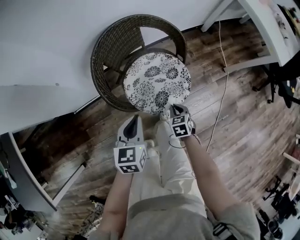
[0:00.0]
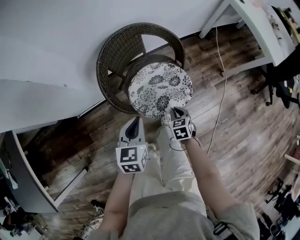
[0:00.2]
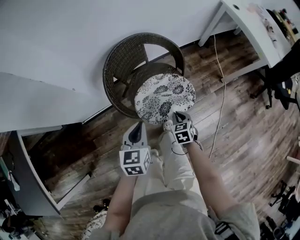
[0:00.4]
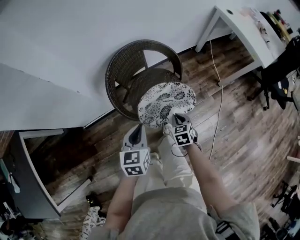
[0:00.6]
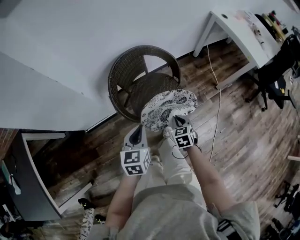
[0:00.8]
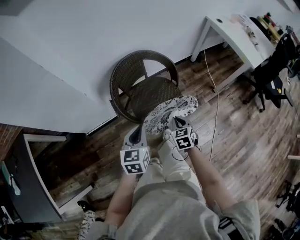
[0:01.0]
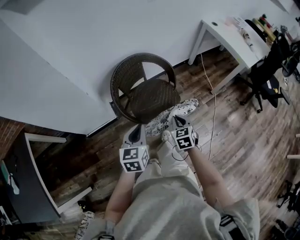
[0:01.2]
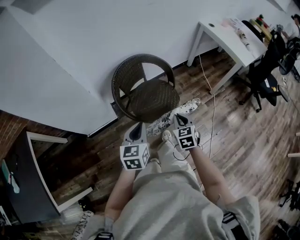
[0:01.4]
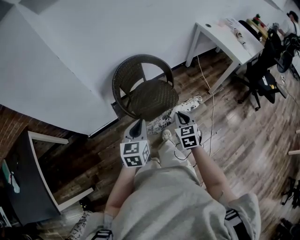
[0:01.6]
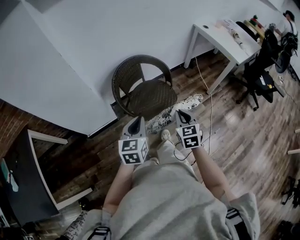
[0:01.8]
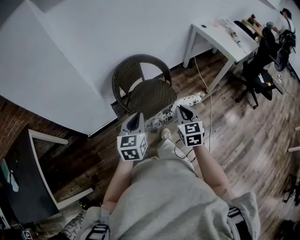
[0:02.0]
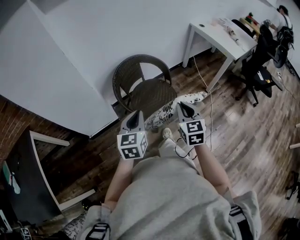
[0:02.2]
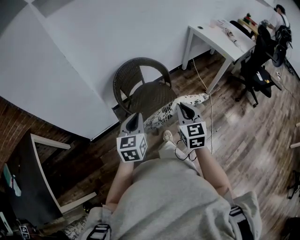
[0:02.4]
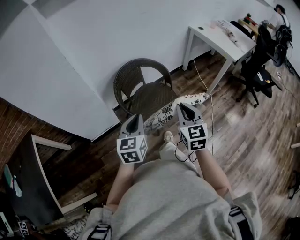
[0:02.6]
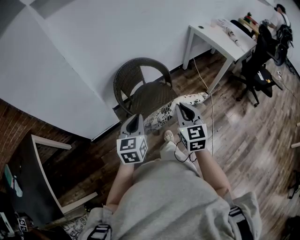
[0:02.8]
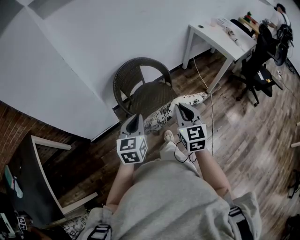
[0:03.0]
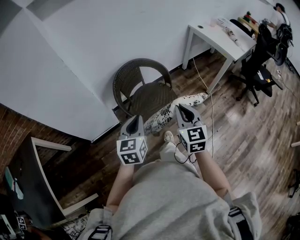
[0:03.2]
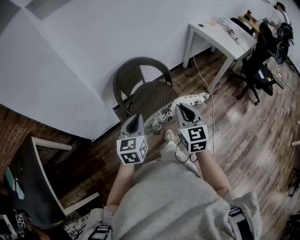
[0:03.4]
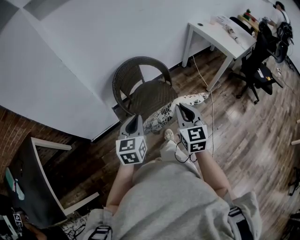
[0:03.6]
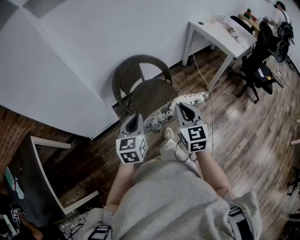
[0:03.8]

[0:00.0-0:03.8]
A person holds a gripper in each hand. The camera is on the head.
0:00.0 to 0:01.2: The left gripper is displaced upward and backward by approximately 20 cm; the right gripper heads upward, covering approximately 25 cm.
0:01.2 to 0:02.6: The left gripper moves upward and backward, roughly 10 cm. Meanwhile the right gripper shifts roughly 25 cm upward and backward, and turns by some 30 degrees.
0:02.6 to 0:03.8: The grippers stay close to where they were, moving slightly.

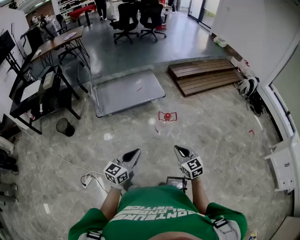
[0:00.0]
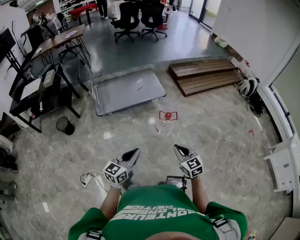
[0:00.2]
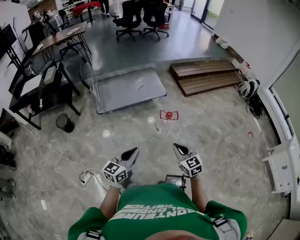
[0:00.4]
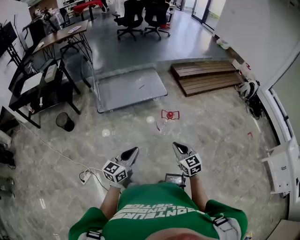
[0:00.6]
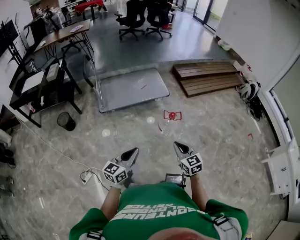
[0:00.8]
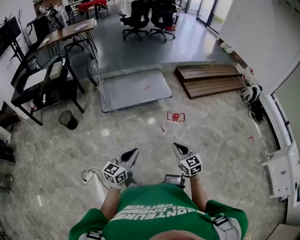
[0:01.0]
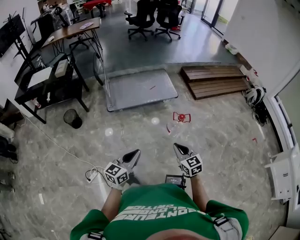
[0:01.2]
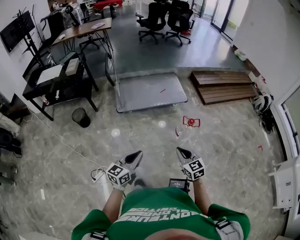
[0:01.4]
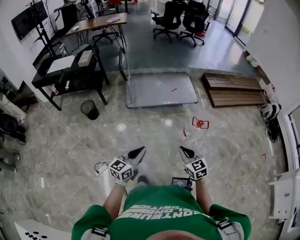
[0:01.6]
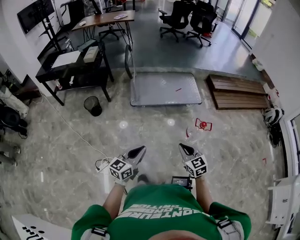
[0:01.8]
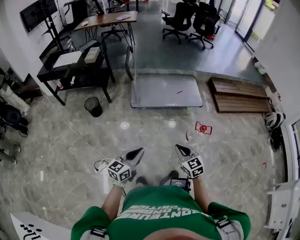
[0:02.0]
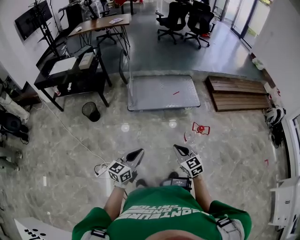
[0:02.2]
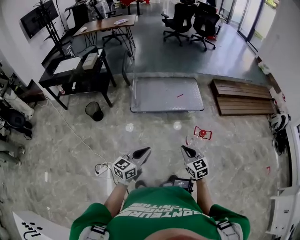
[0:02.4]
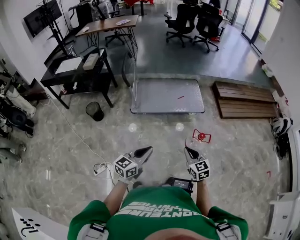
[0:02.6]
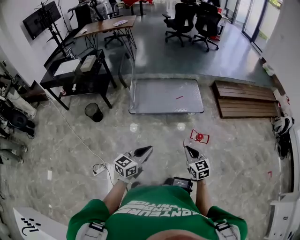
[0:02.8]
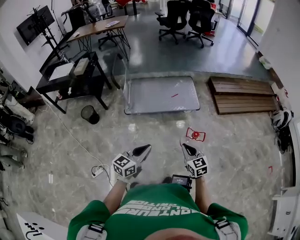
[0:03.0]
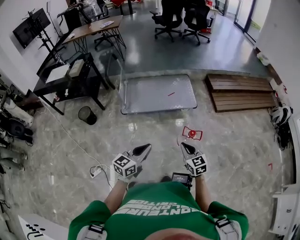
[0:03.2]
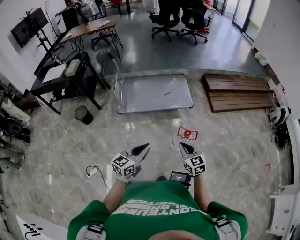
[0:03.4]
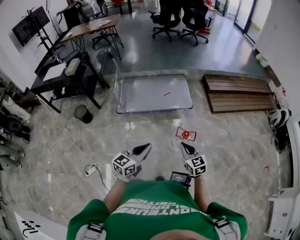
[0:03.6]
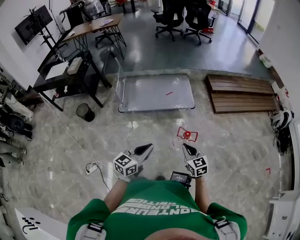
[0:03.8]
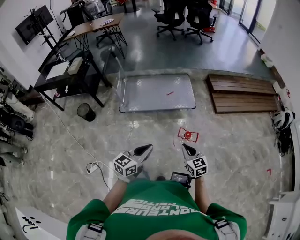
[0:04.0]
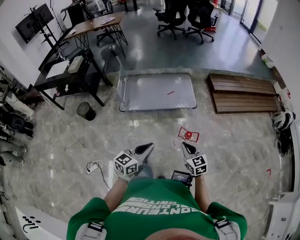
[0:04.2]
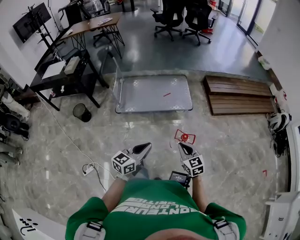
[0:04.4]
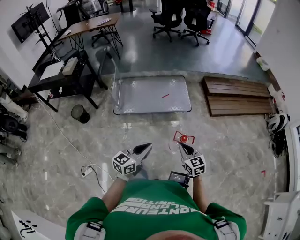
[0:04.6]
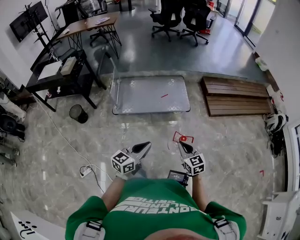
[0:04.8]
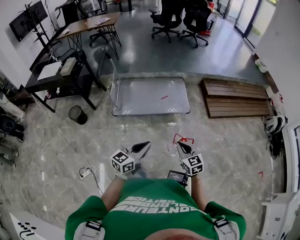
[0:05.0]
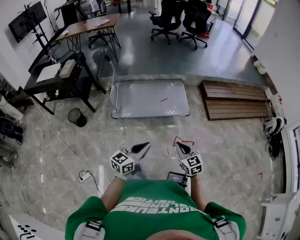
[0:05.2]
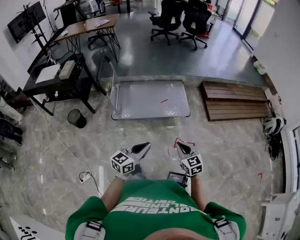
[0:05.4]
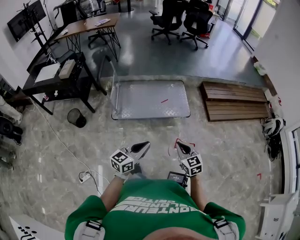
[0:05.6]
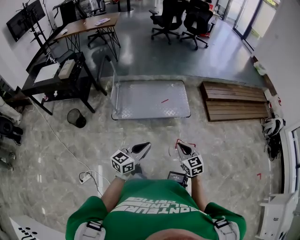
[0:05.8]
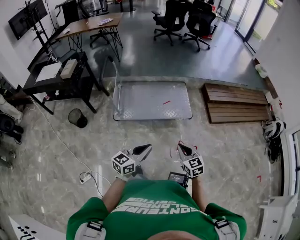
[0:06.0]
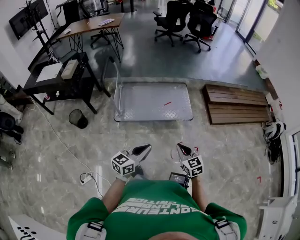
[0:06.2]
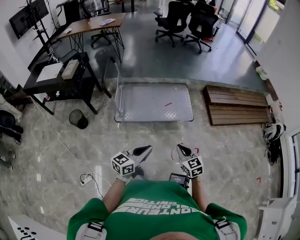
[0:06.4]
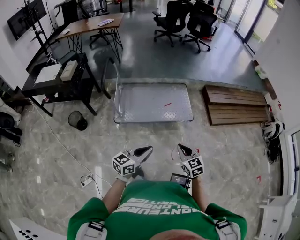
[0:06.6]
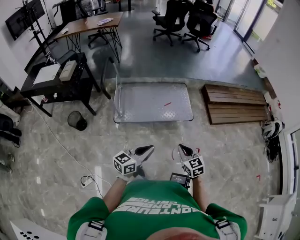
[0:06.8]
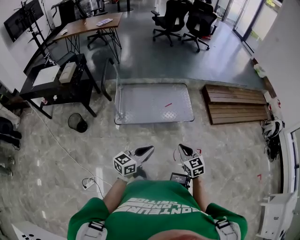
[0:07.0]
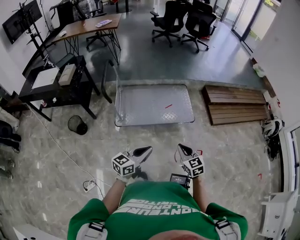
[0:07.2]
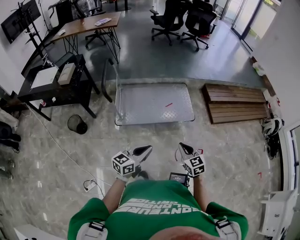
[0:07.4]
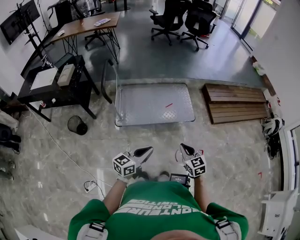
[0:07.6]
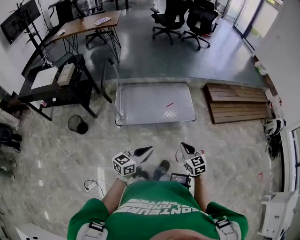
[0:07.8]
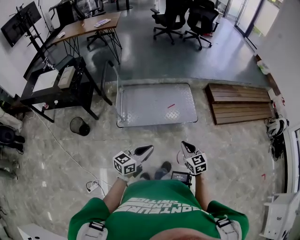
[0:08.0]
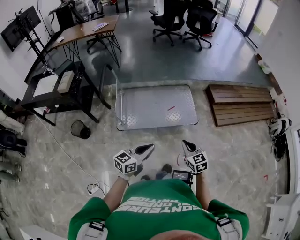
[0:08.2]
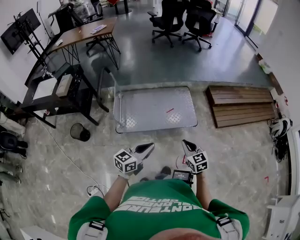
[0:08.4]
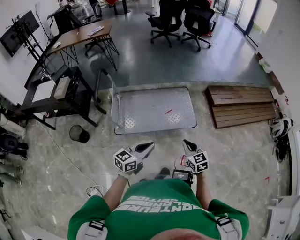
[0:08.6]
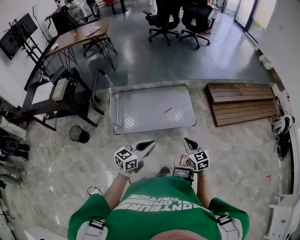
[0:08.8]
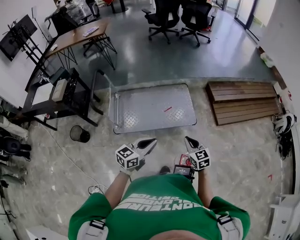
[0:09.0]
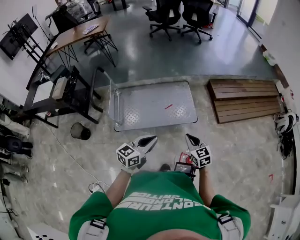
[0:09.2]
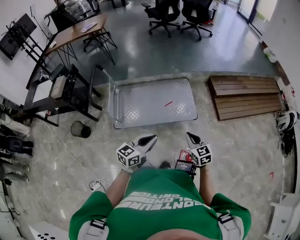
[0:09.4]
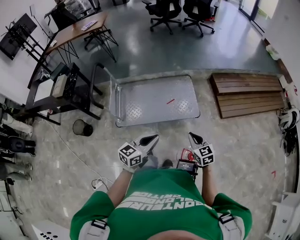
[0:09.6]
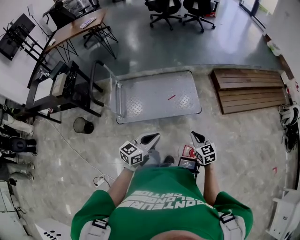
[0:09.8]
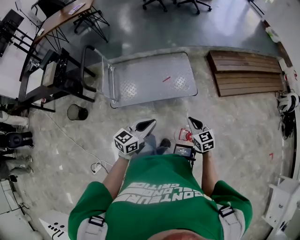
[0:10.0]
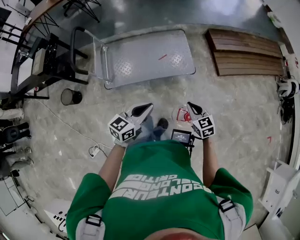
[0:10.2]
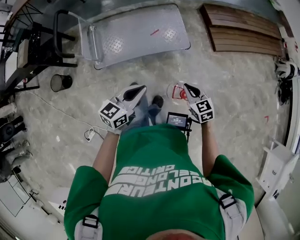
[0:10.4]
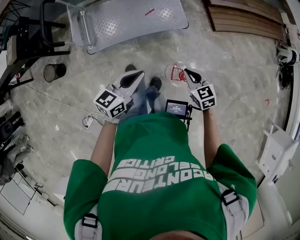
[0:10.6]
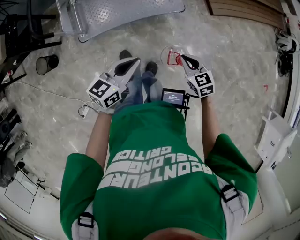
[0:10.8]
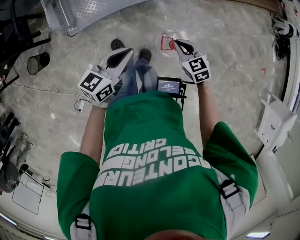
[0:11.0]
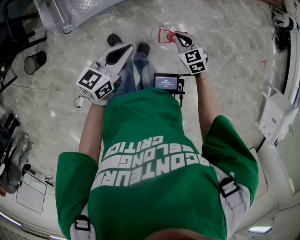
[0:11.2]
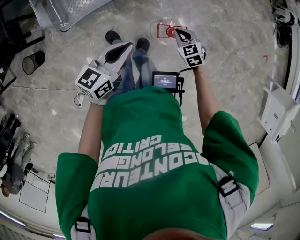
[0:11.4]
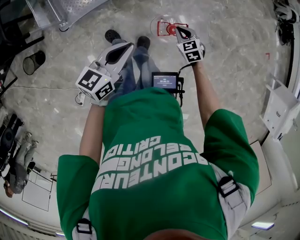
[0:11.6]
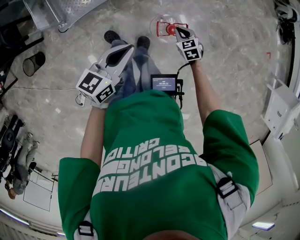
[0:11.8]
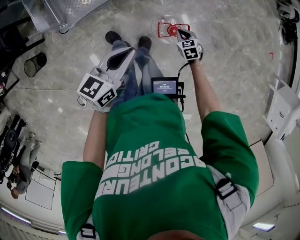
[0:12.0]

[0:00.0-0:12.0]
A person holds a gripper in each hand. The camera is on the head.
0:00.0 to 0:01.6: The grippers both shift to the left by about 20 cm.
0:01.6 to 0:03.0: Both grippers travel together to the right and forward, about 20 cm.
0:03.0 to 0:04.4: Both grippers move to the right and forward, some 10 cm.
0:04.4 to 0:06.0: The two grippers go approximately 10 cm forward and to the left.
0:06.0 to 0:07.6: The right gripper is displaced to the left and forward by some 10 cm; the left gripper moves to the left, some 10 cm.
0:07.6 to 0:09.0: The two grippers go approximately 20 cm forward and to the right.
0:09.0 to 0:10.4: The right gripper shifts some 10 cm downward; the left gripper shifts about 5 cm downward.
0:10.4 to 0:12.0: The right gripper shifts approximately 25 cm downward and to the right, and swivels some 30 degrees. Meanwhile the left gripper travels to the right and downward by some 10 cm.

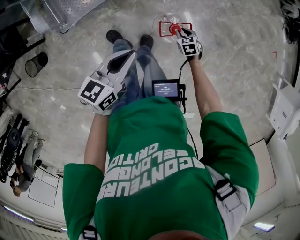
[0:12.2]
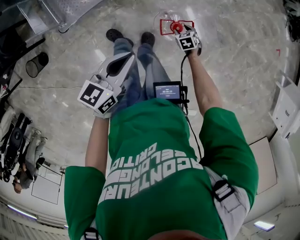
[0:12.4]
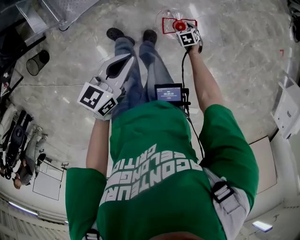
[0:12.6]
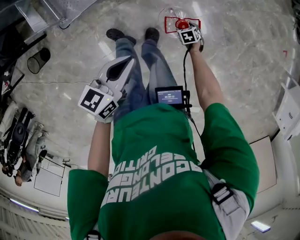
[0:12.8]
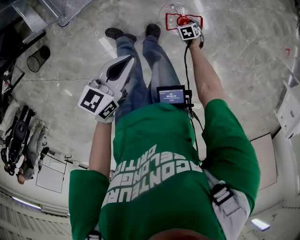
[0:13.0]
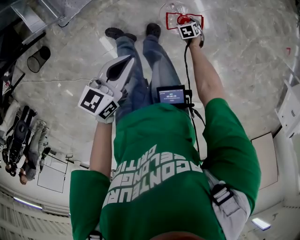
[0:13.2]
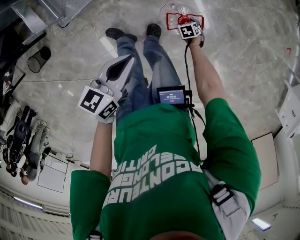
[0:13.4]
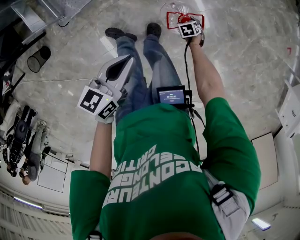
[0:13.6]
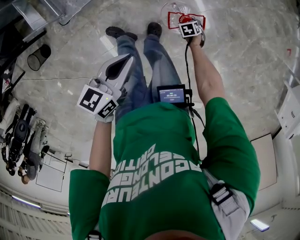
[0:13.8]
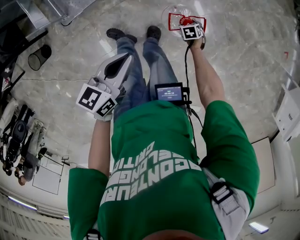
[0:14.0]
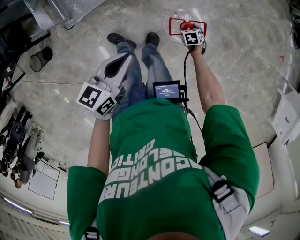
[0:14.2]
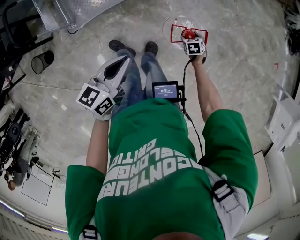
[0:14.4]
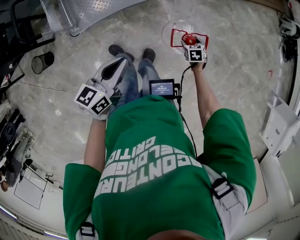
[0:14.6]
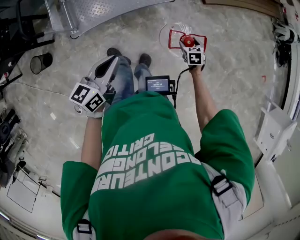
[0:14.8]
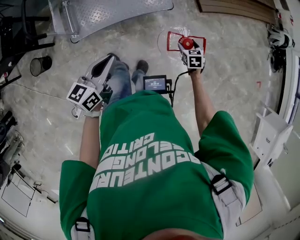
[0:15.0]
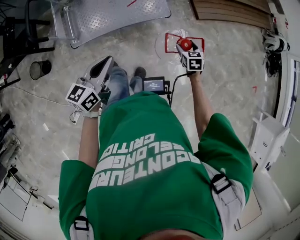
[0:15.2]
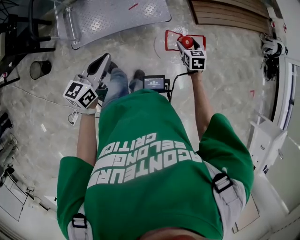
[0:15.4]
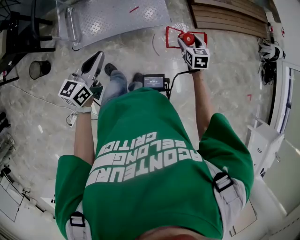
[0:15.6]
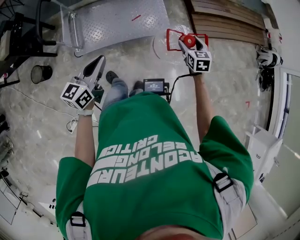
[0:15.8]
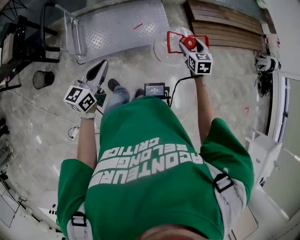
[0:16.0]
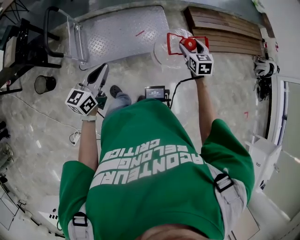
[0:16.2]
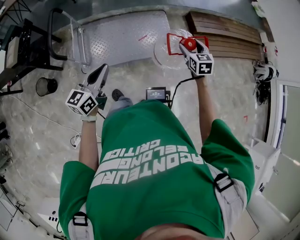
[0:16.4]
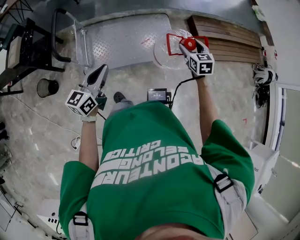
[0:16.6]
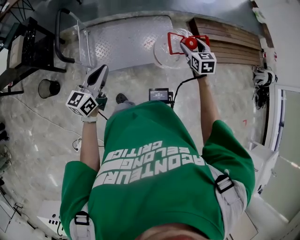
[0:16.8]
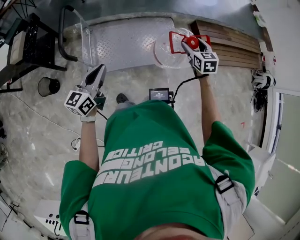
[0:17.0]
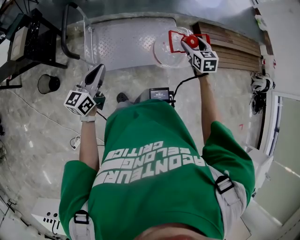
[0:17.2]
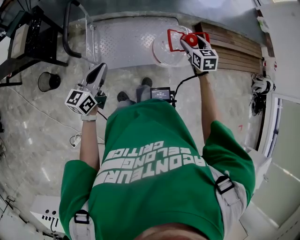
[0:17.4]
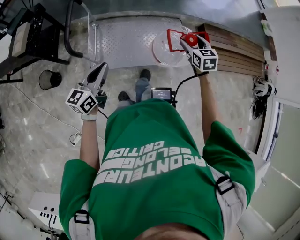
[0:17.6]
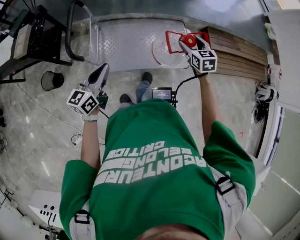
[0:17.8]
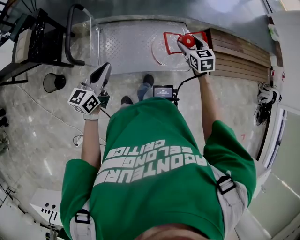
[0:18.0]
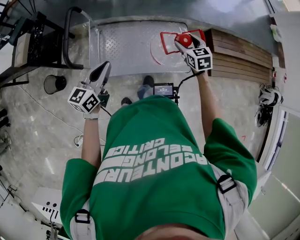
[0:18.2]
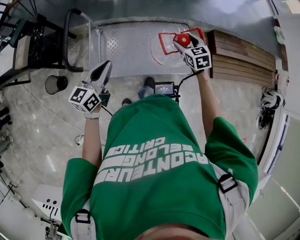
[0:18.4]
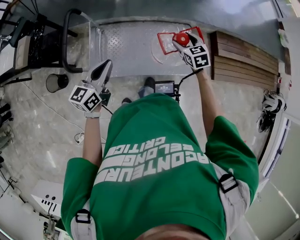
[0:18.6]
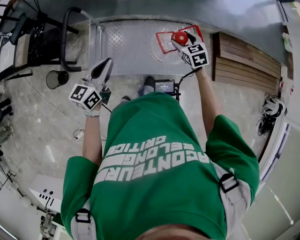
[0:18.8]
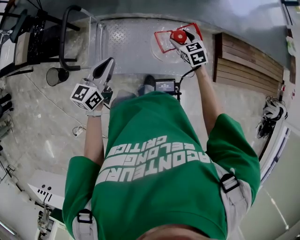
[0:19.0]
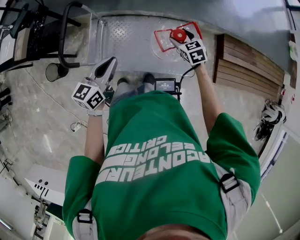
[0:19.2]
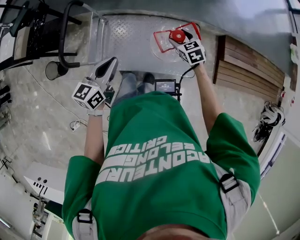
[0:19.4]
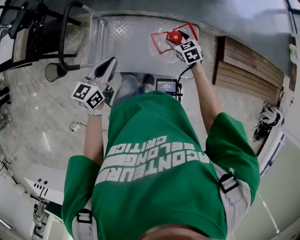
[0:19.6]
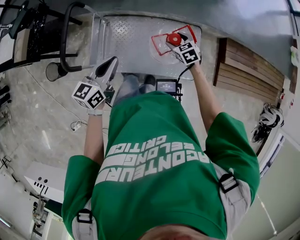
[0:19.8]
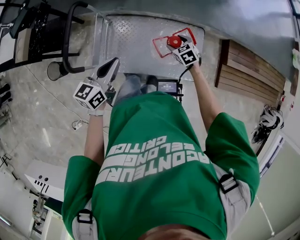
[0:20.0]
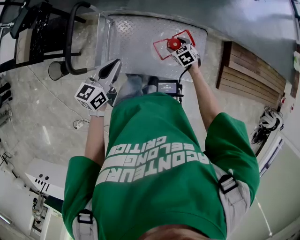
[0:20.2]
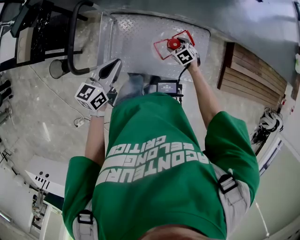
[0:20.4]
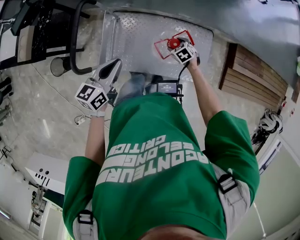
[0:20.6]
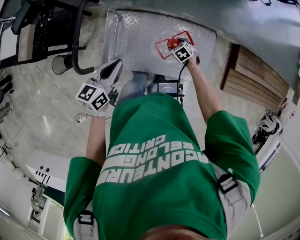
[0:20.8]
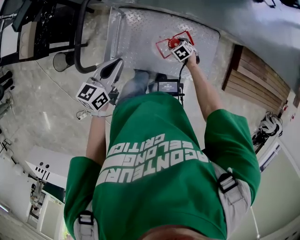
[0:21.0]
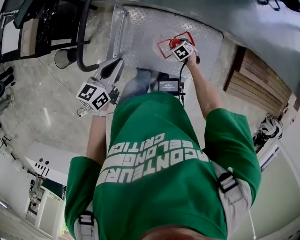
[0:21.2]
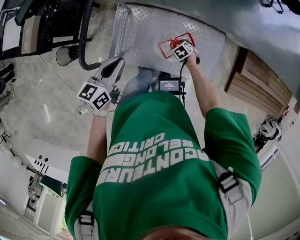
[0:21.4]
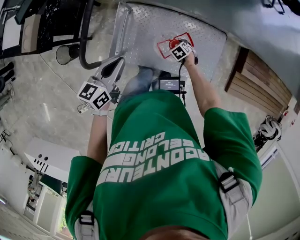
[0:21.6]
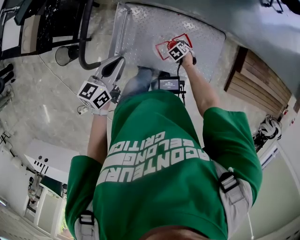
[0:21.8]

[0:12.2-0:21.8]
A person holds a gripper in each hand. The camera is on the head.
0:12.2 to 0:13.8: The right gripper moves downward, roughly 15 cm, and opens up.
0:13.8 to 0:15.4: The left gripper heads upward, covering approximately 15 cm, and turns by roughly 30 degrees, while the right gripper goes about 40 cm upward, and angles its fingers upward, by some 40 degrees.
0:15.4 to 0:17.0: The left gripper shifts about 25 cm to the left, while the right gripper heads to the left, upward and forward, covering approximately 35 cm.
0:17.0 to 0:18.6: The right gripper moves forward and to the left, some 20 cm, and rotates approximately 20 degrees. Meanwhile the left gripper heads forward, covering about 15 cm.
0:18.6 to 0:20.2: The left gripper shifts approximately 10 cm forward. Meanwhile the right gripper is displaced downward, forward and to the left by about 20 cm, and rotates approximately 20 degrees.
0:20.2 to 0:21.8: The left gripper changes place by some 10 cm; the right gripper travels downward by approximately 15 cm, and swivels about 20 degrees.
